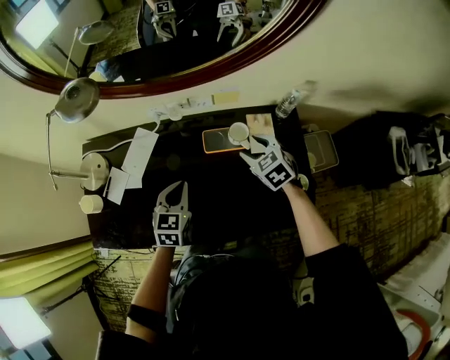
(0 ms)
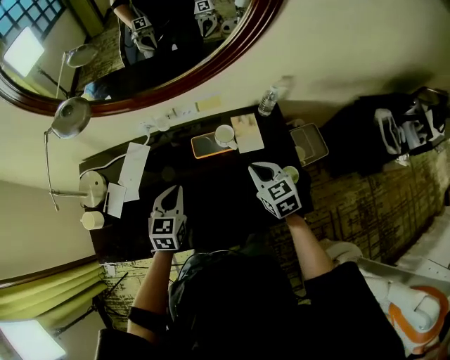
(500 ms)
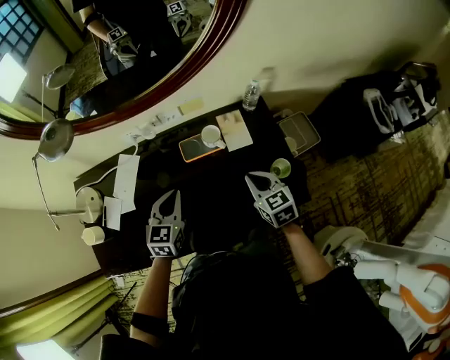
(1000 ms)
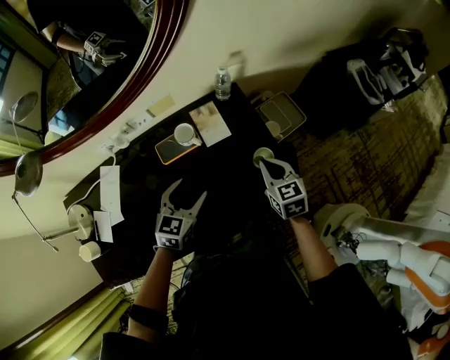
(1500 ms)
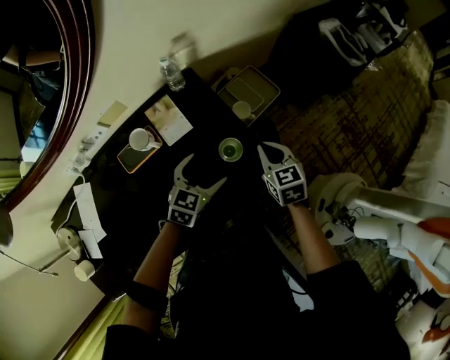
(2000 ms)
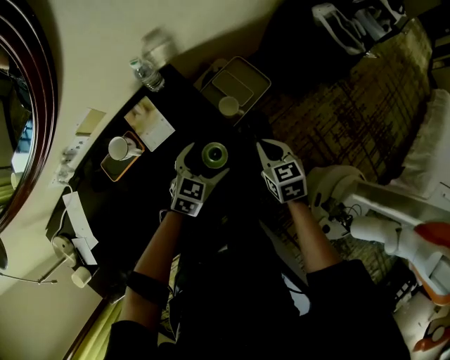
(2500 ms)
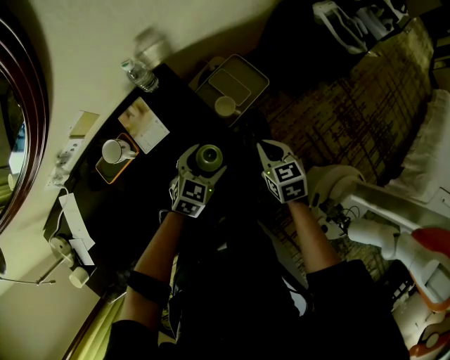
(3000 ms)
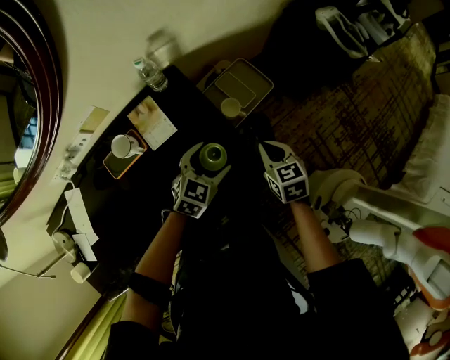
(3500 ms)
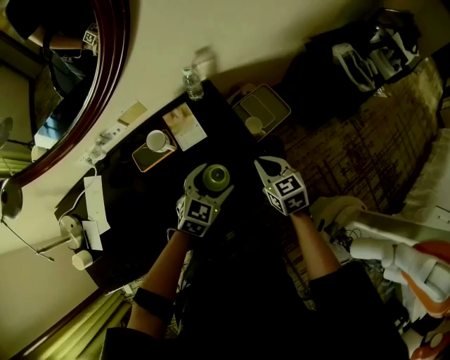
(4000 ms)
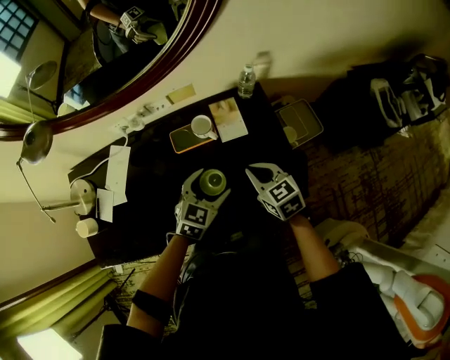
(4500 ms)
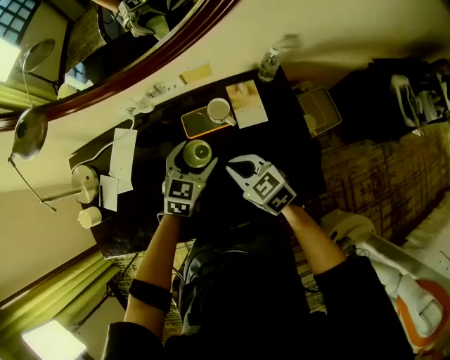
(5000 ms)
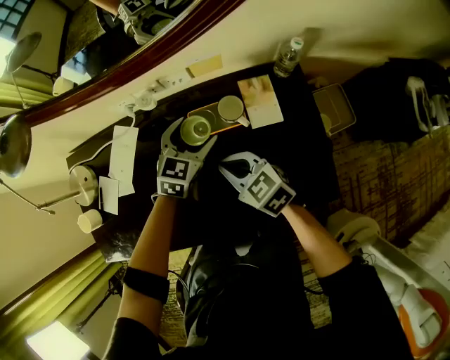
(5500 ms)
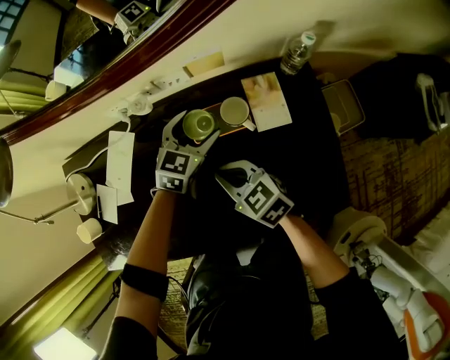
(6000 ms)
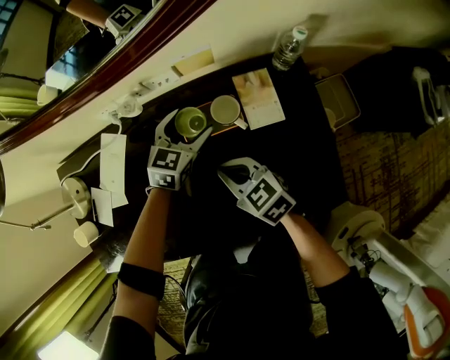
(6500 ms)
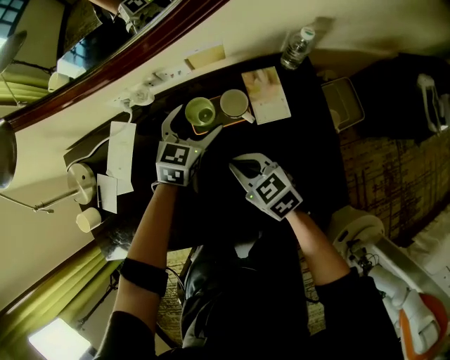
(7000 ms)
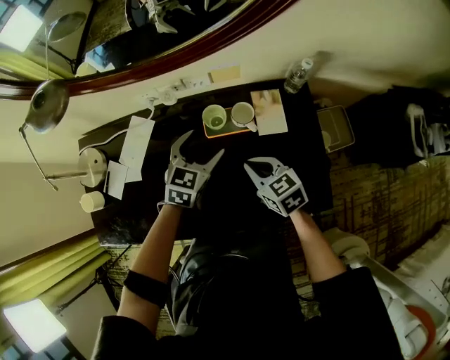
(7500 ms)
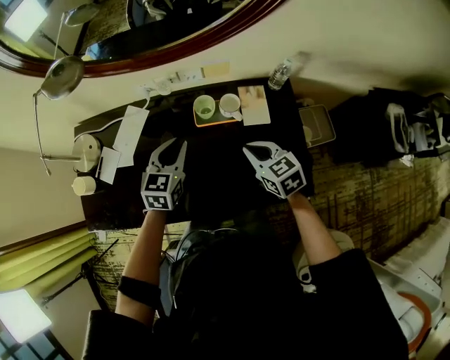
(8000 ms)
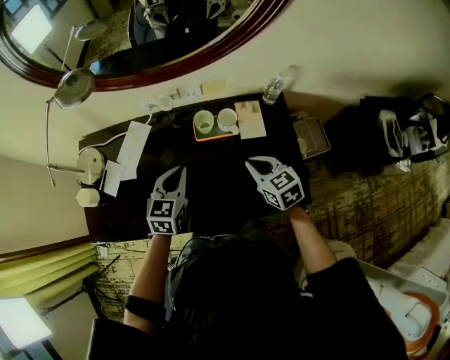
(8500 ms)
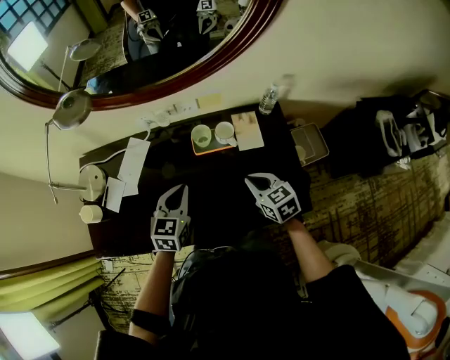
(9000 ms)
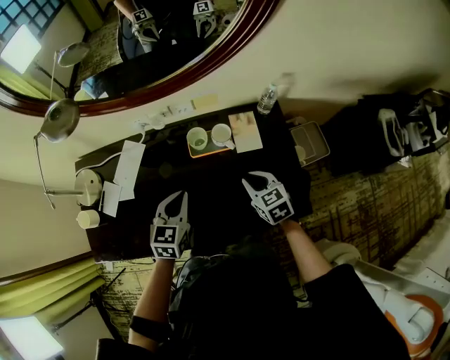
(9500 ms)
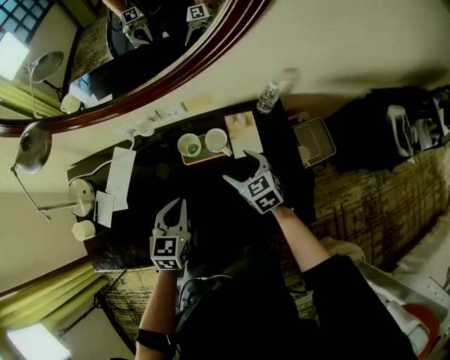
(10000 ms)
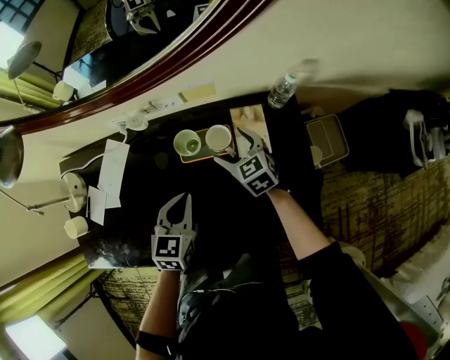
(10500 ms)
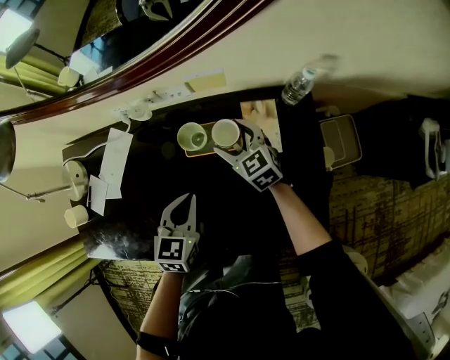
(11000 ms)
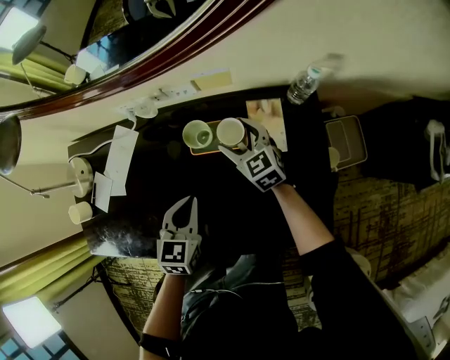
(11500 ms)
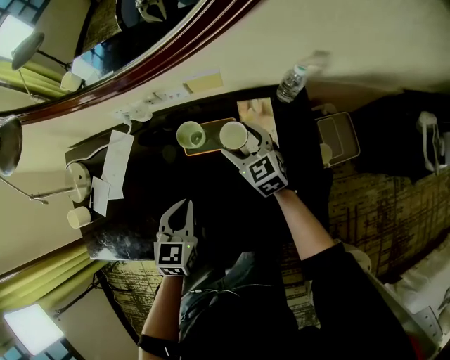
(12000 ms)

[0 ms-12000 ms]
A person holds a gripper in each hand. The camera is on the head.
0 ms to 2000 ms: The right gripper ends up about 35 cm from where it was, rotates some 50 degrees, and closes up. Meanwhile the left gripper moves roughly 35 cm, swivels roughly 50 degrees, and opens.
4000 ms to 6000 ms: The right gripper moves approximately 35 cm, and changes its angle by some 40 degrees. The left gripper changes place by roughly 35 cm, and turns by roughly 20 degrees.
6000 ms to 8000 ms: The left gripper is displaced backward, upward and to the left by roughly 20 cm, turns by about 20 degrees, and closes, while the right gripper is displaced to the right, upward and backward by some 15 cm.
8000 ms to 10000 ms: The left gripper shifts by about 5 cm; the right gripper is displaced forward and downward by approximately 10 cm, and opens its fingers.
10000 ms to 12000 ms: The left gripper moves approximately 5 cm. Meanwhile the right gripper moves forward, approximately 10 cm.

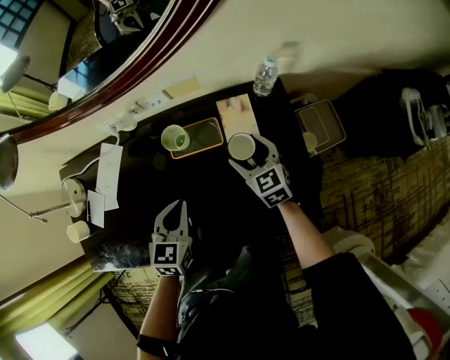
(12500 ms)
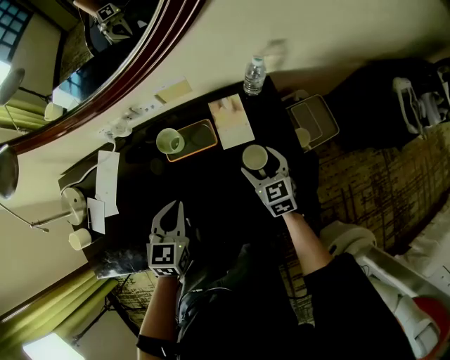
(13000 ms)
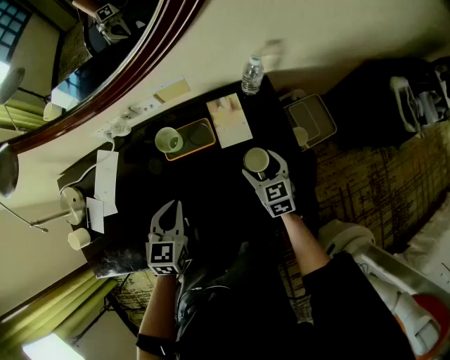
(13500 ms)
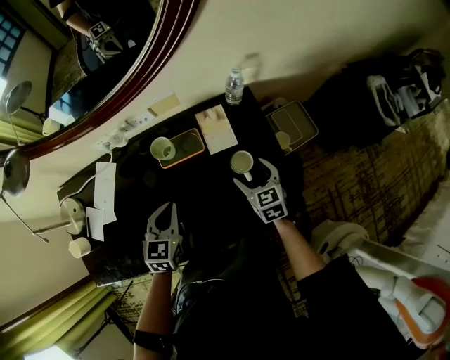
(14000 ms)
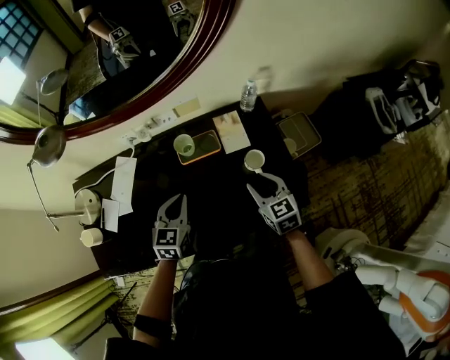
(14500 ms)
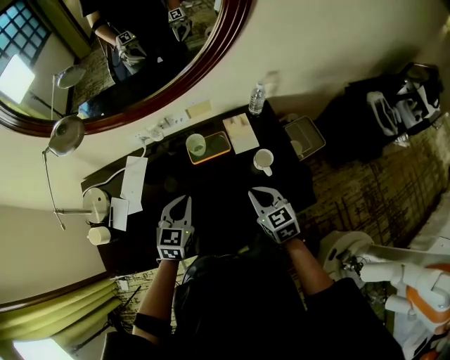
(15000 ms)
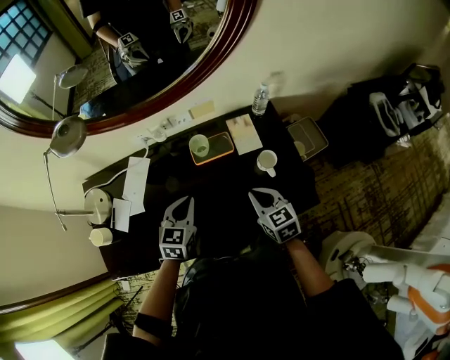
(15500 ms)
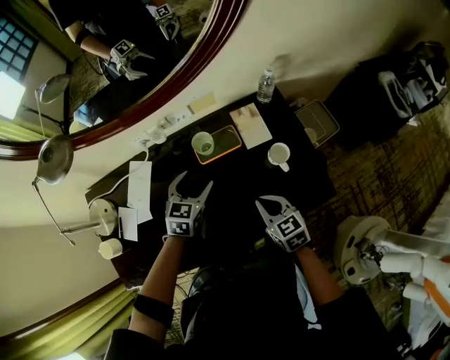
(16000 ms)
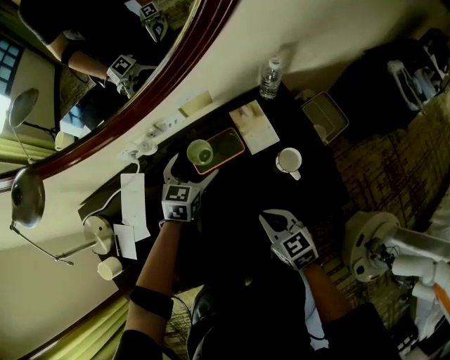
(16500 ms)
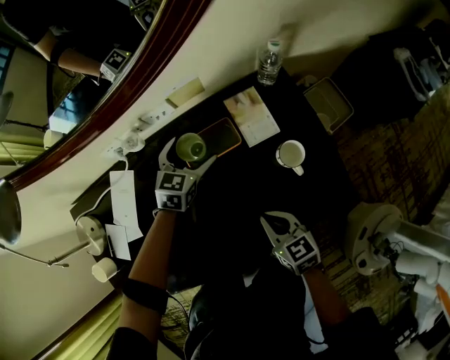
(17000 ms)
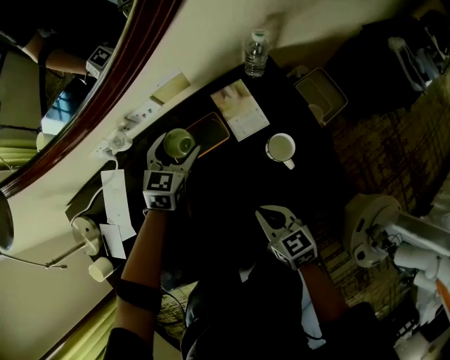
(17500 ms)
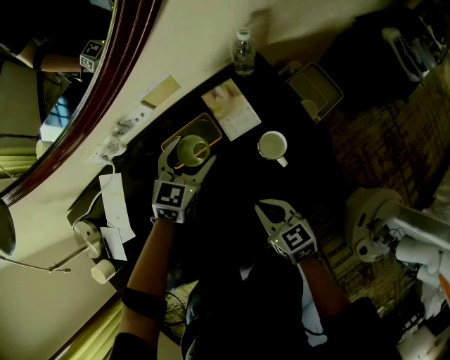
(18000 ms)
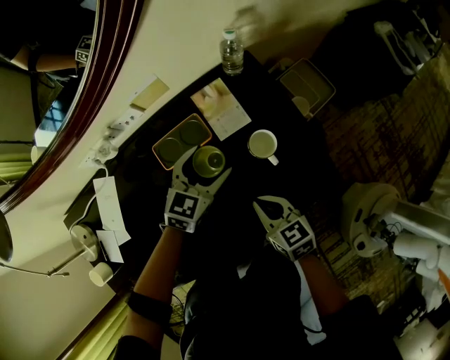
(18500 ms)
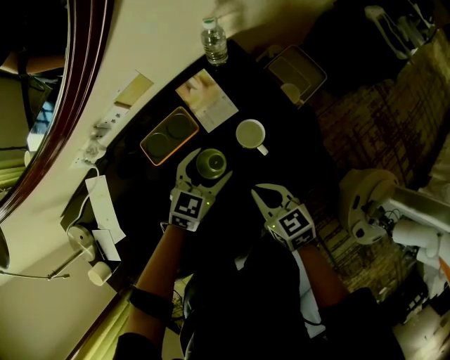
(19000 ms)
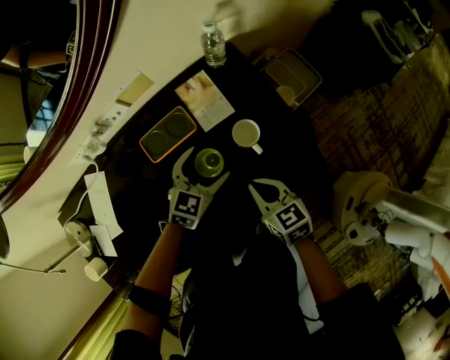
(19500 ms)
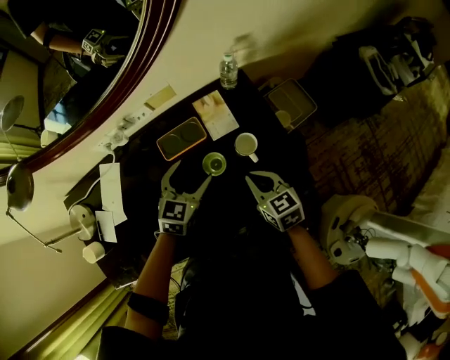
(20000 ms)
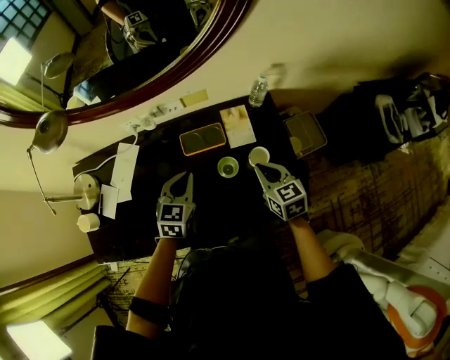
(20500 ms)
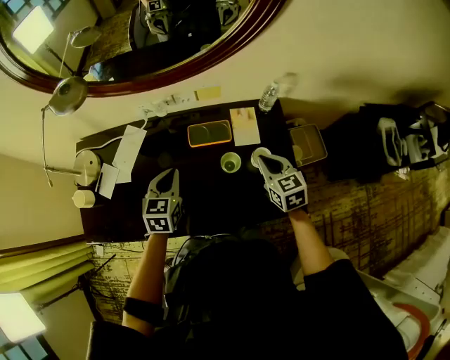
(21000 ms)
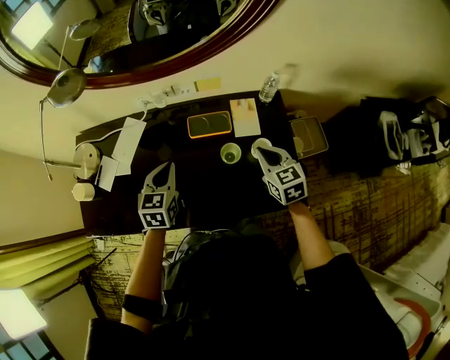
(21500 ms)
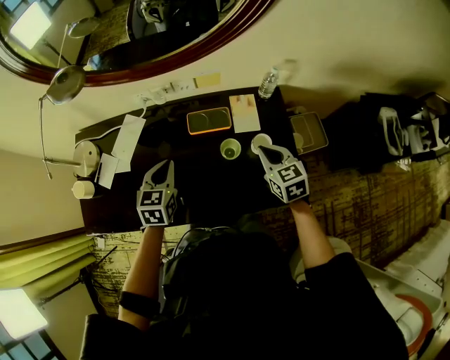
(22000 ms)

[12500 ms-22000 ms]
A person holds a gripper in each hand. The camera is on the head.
12500 ms to 14500 ms: The right gripper travels backward and upward by about 15 cm, and closes its fingers. The left gripper is displaced upward by approximately 5 cm.
14500 ms to 16500 ms: The left gripper travels forward and downward by roughly 20 cm, and opens up. Meanwhile the right gripper heads to the left and downward, covering about 15 cm.
16500 ms to 18000 ms: The right gripper ends up about 5 cm from where it was. The left gripper goes about 10 cm to the right.
18000 ms to 20000 ms: The right gripper moves upward and to the right, roughly 10 cm. Meanwhile the left gripper goes some 10 cm backward and upward.
20000 ms to 22000 ms: The right gripper heads upward and forward, covering roughly 10 cm; the left gripper is displaced to the left by roughly 15 cm, rotates roughly 30 degrees, and closes up.

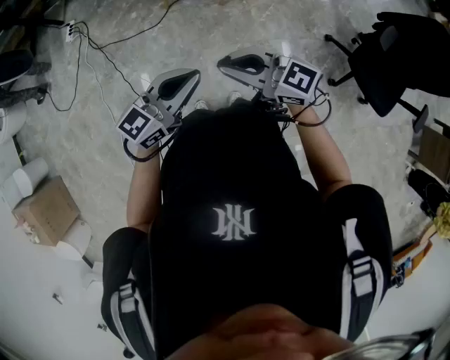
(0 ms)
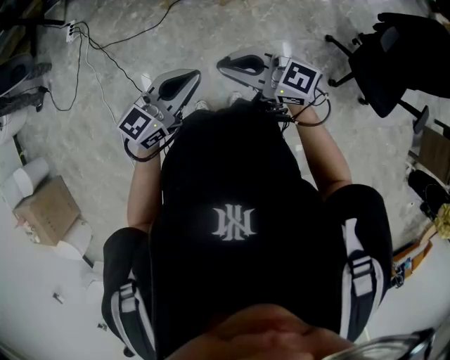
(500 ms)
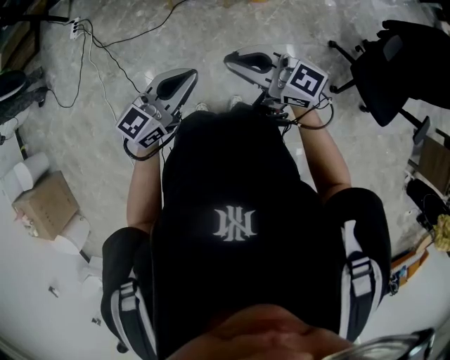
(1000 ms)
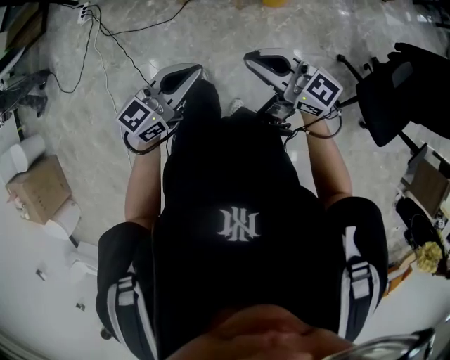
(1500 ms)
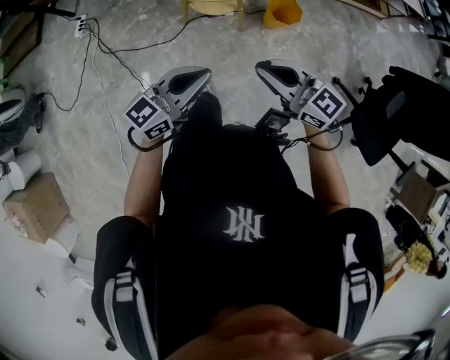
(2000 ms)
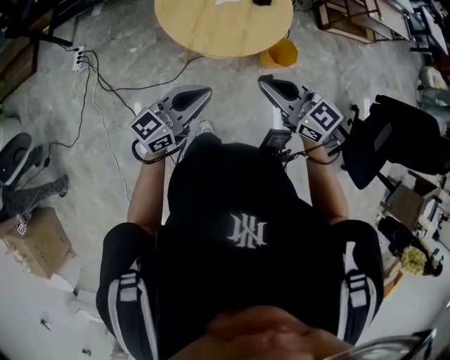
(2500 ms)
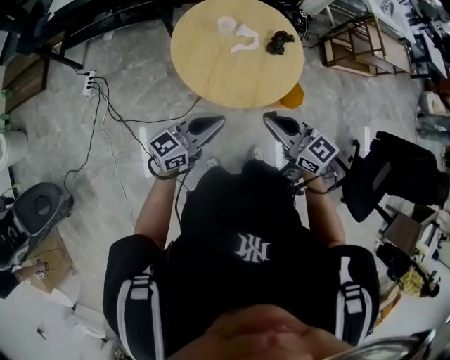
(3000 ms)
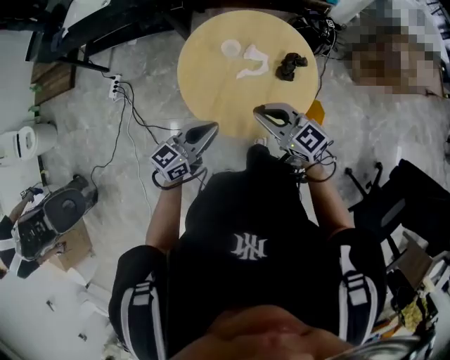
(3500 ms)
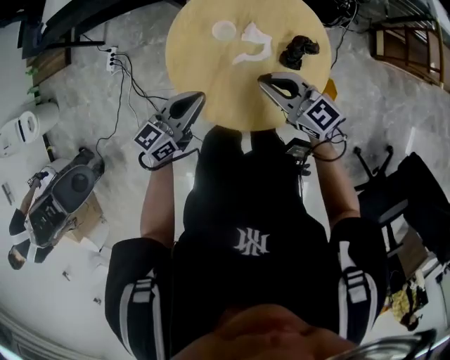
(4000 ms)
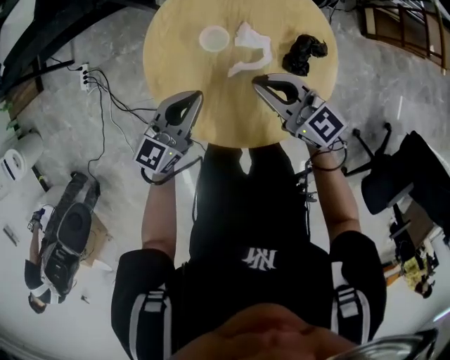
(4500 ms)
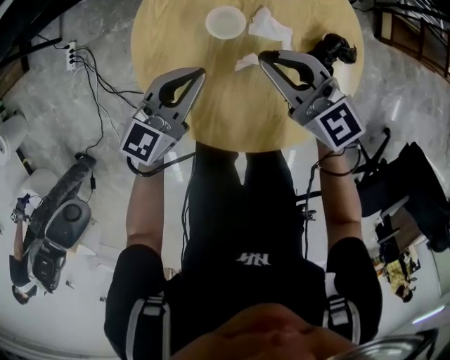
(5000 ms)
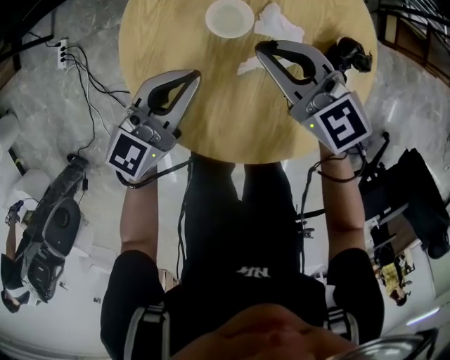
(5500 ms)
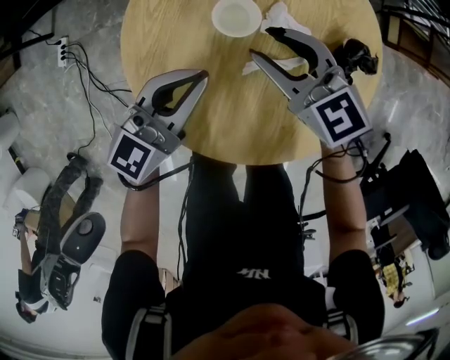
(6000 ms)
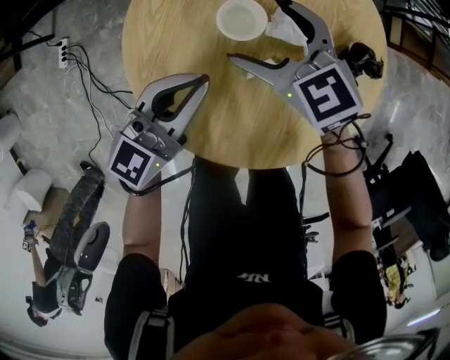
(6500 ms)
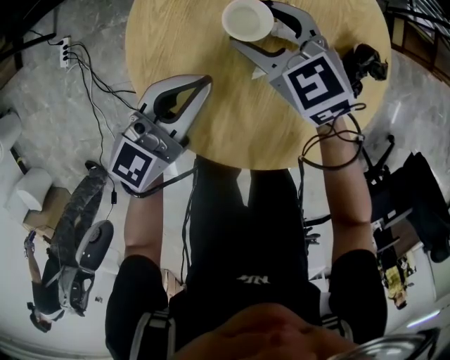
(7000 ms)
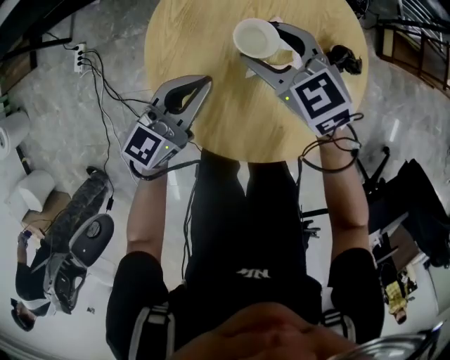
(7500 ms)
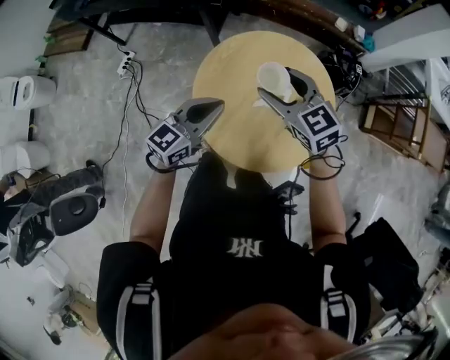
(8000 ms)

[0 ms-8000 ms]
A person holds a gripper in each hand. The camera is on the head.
0 ms to 2000 ms: The right gripper moves about 20 cm, while the left gripper changes place by about 20 cm.
2000 ms to 4000 ms: Both grippers are carried forward, roughly 50 cm.
4000 ms to 6000 ms: The two grippers go roughly 15 cm downward and forward. The right gripper opens its fingers.
6000 ms to 8000 ms: The two grippers go roughly 15 cm upward. The right gripper opens, then closes once more.
